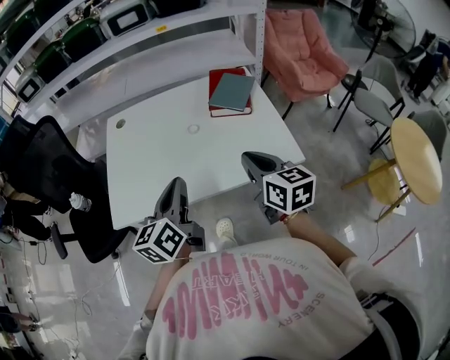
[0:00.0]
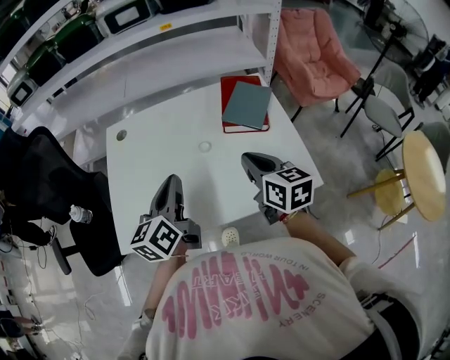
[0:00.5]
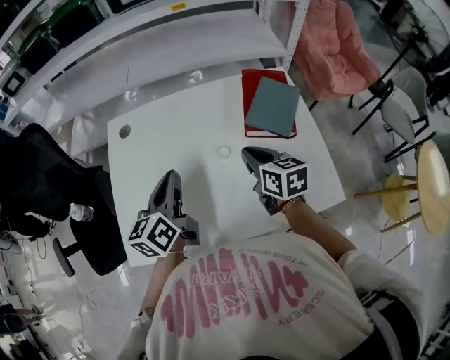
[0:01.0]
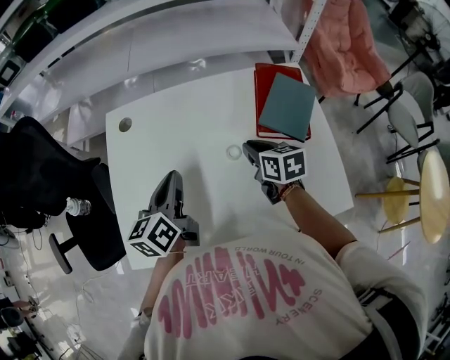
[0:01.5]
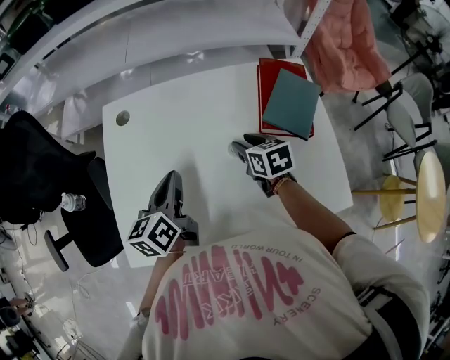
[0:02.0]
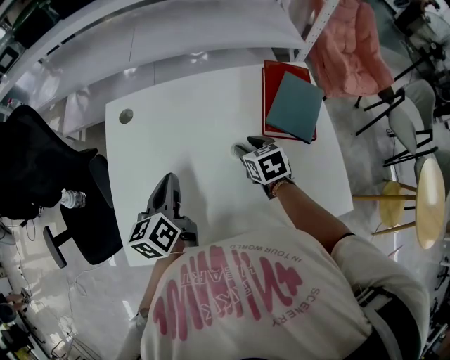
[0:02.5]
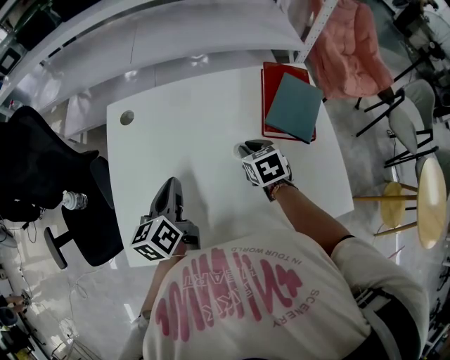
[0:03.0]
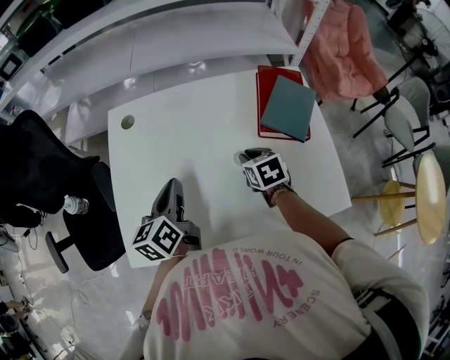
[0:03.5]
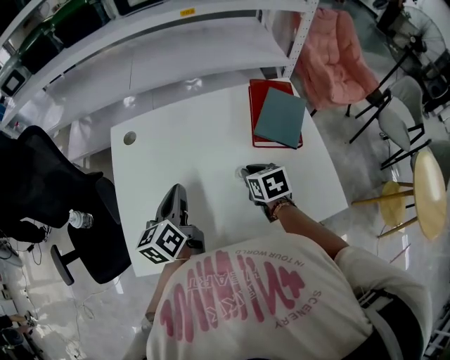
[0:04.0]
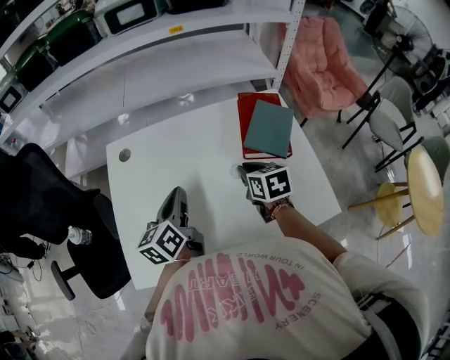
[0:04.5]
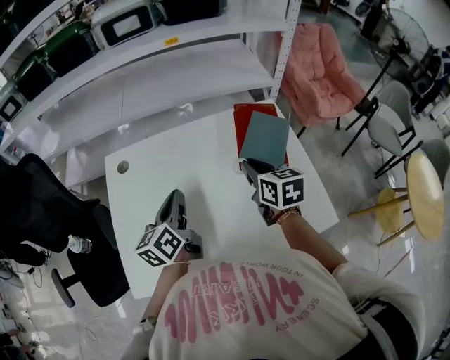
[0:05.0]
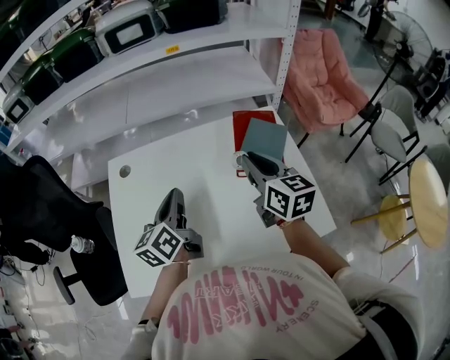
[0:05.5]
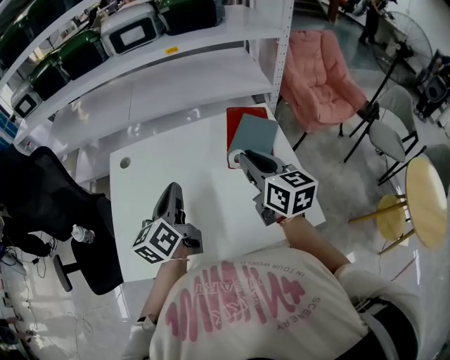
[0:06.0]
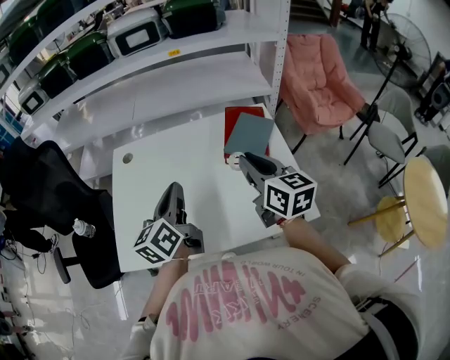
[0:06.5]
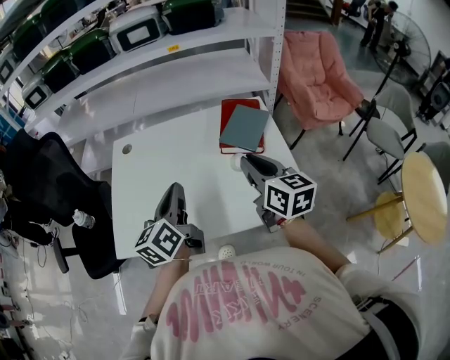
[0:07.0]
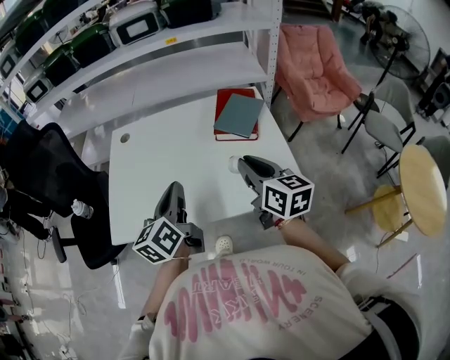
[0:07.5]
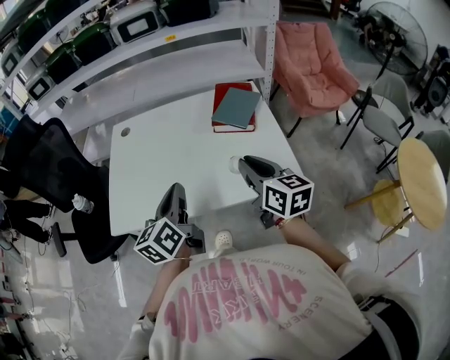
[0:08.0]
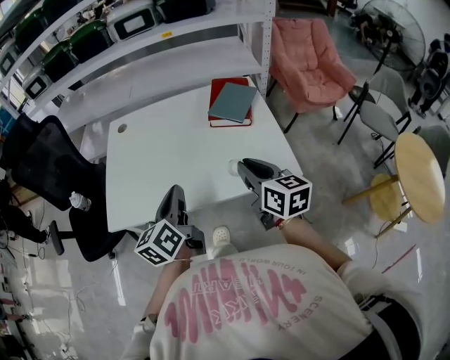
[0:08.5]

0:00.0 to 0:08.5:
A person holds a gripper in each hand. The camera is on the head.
0:00.0 to 0:02.0: The right gripper heads forward and downward, covering roughly 50 cm, rotates about 30 degrees, and opens. The left gripper is displaced forward by about 35 cm.
0:02.0 to 0:04.0: The right gripper goes some 10 cm backward, and closes up.
0:04.0 to 0:06.5: The right gripper is displaced upward and to the right by approximately 25 cm, and tilts its fingers approximately 40 degrees upward. The left gripper goes approximately 20 cm to the right, upward and backward.
0:06.5 to 0:08.5: The grippers both shift backward by some 20 cm.

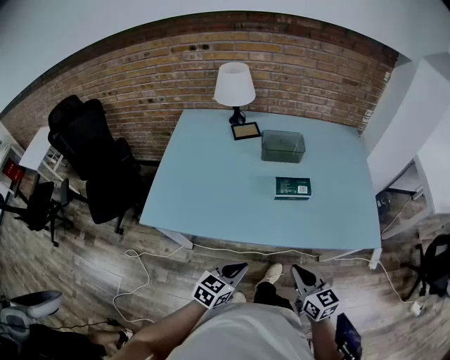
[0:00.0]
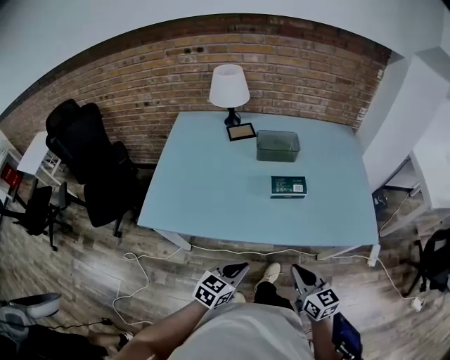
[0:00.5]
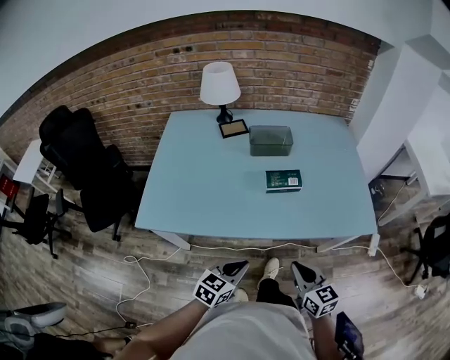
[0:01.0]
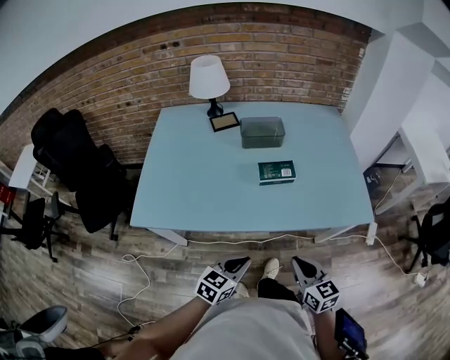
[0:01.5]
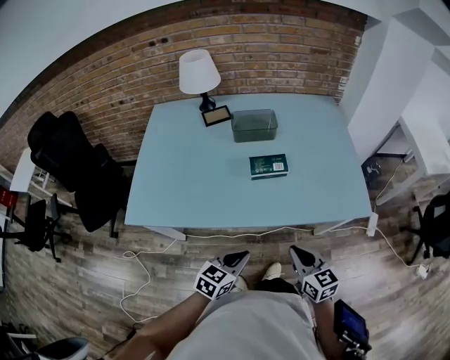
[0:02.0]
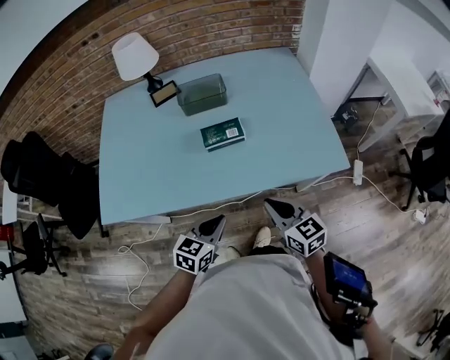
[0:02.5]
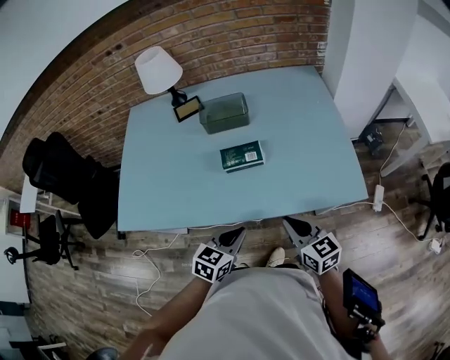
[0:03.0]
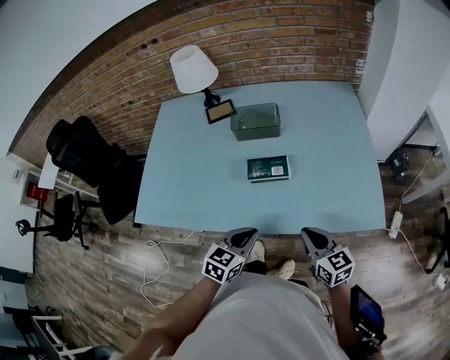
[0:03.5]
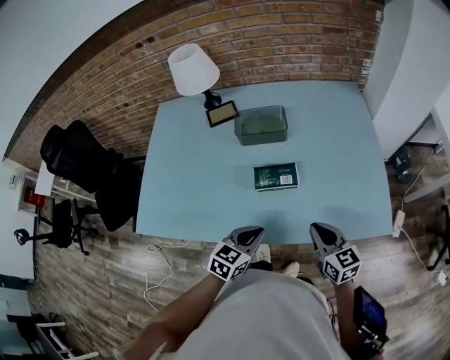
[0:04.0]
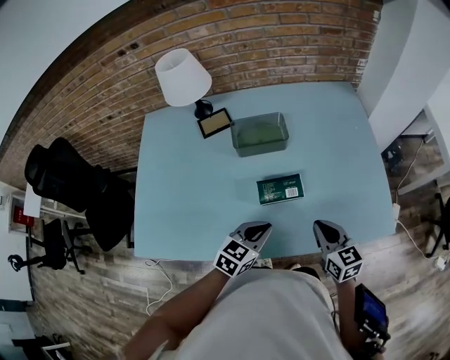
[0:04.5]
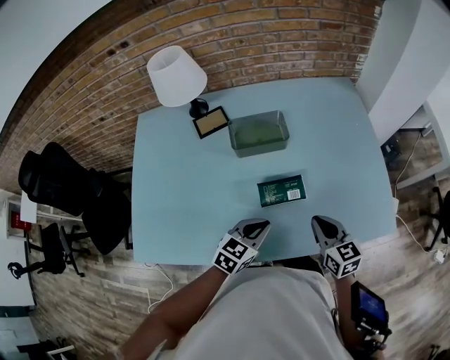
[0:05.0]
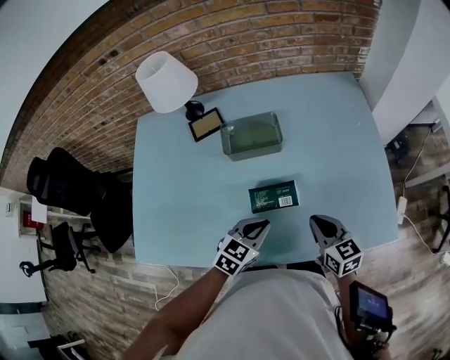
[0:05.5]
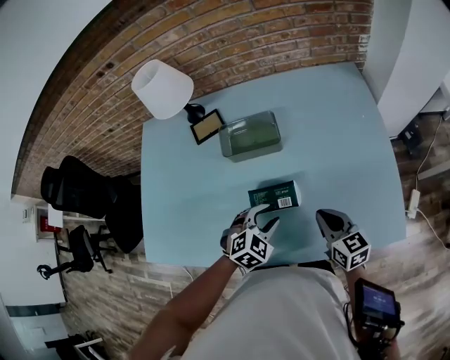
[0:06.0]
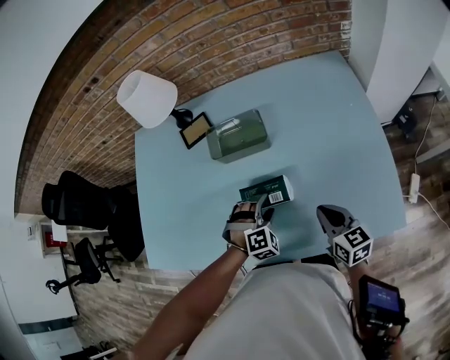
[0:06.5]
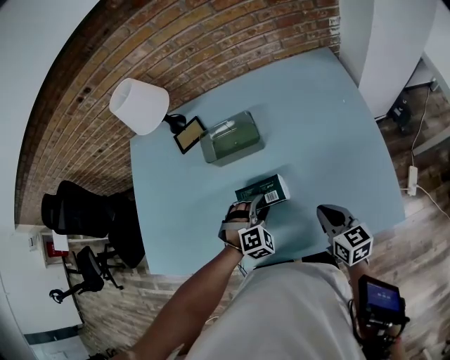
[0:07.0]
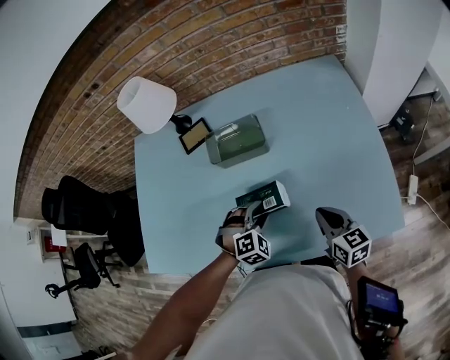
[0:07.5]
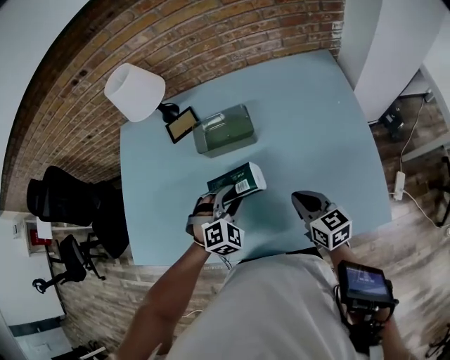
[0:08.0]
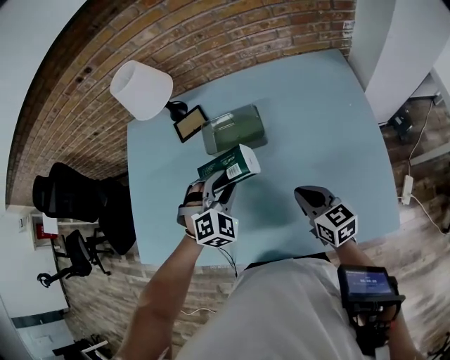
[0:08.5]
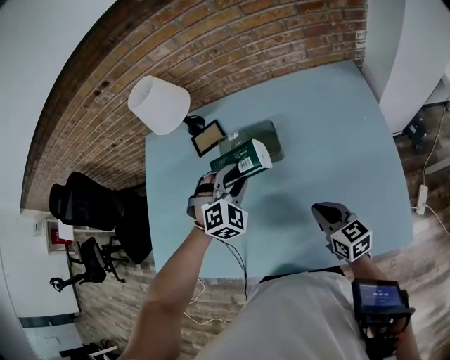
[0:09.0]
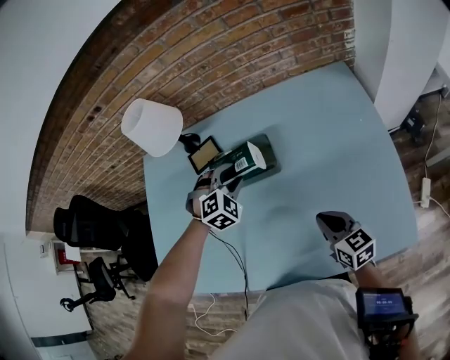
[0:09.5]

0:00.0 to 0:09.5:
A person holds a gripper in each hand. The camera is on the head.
0:00.0 to 0:02.0: The grippers both shift to the right by approximately 5 cm.
0:02.0 to 0:04.0: The two grippers go approximately 15 cm forward.
0:04.0 to 0:05.5: The two grippers go roughly 10 cm forward.
0:05.5 to 0:07.5: The left gripper heads downward, covering some 5 cm, rolls clockwise, seen from behind, by about 50 degrees, and opens; the right gripper is displaced to the right by some 5 cm.
0:07.5 to 0:09.5: The left gripper travels forward by about 20 cm. Meanwhile the right gripper is displaced forward by roughly 5 cm.

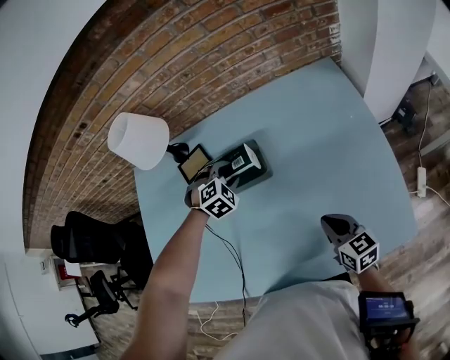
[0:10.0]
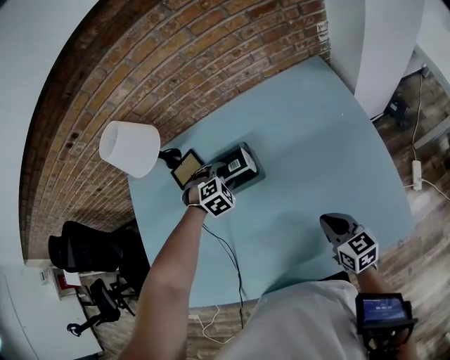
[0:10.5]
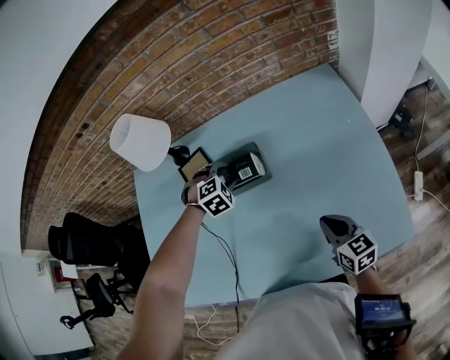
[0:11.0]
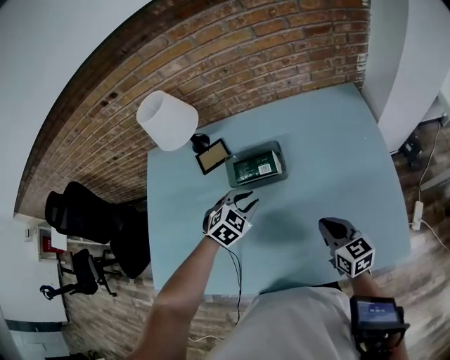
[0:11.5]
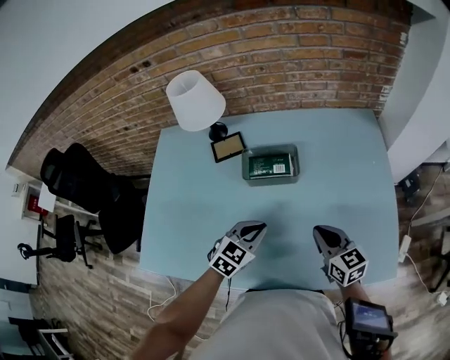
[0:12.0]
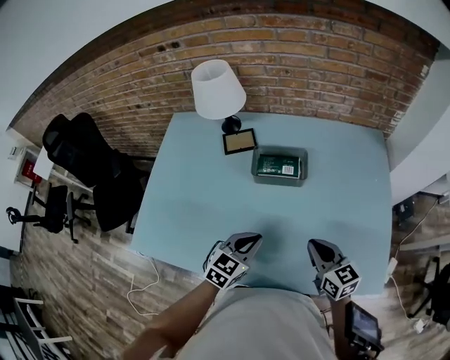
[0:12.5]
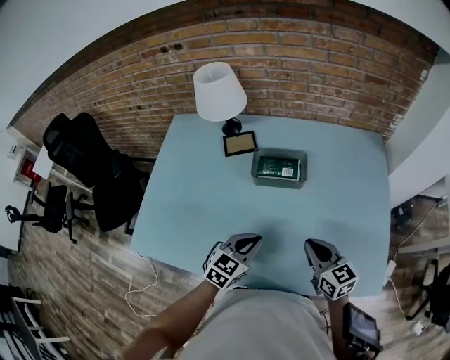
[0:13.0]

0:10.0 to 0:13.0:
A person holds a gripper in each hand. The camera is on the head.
0:10.0 to 0:11.5: The left gripper travels backward by roughly 10 cm, and rotates approximately 20 degrees.
0:11.5 to 0:13.0: The right gripper moves to the left, some 5 cm. Meanwhile the left gripper moves backward, roughly 15 cm, swivels approximately 40 degrees, and closes its fingers.

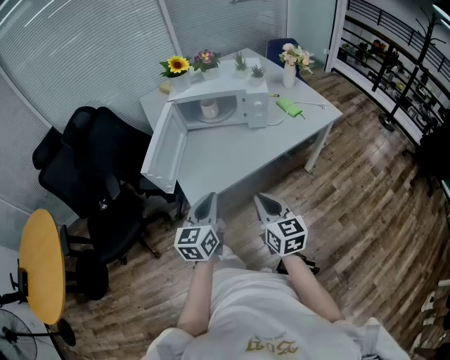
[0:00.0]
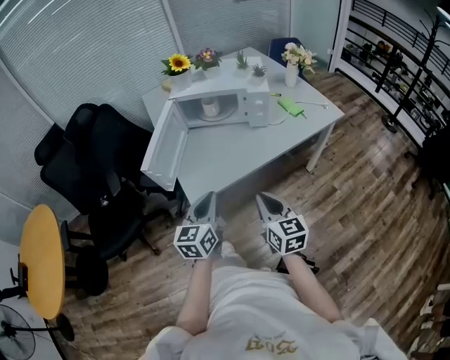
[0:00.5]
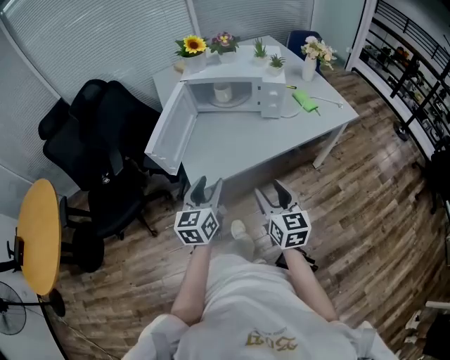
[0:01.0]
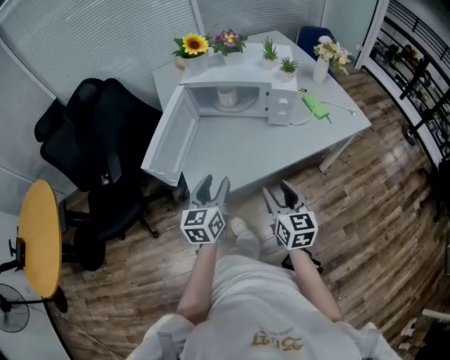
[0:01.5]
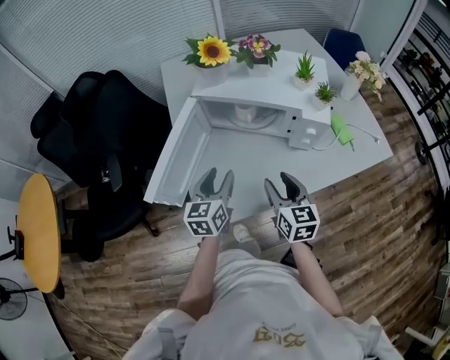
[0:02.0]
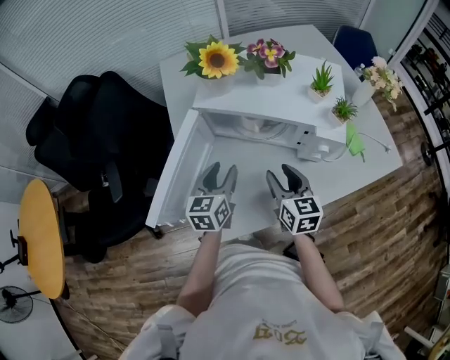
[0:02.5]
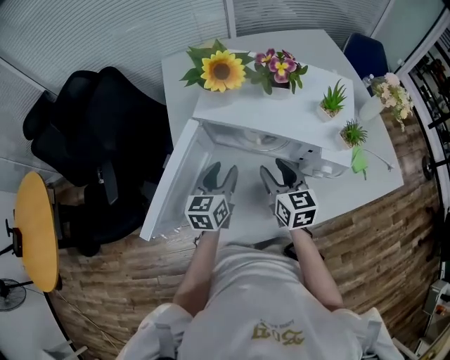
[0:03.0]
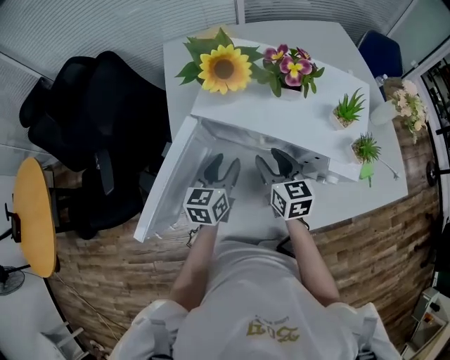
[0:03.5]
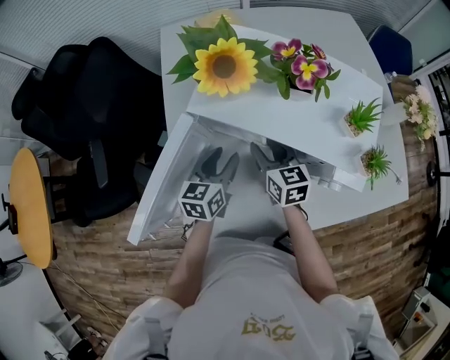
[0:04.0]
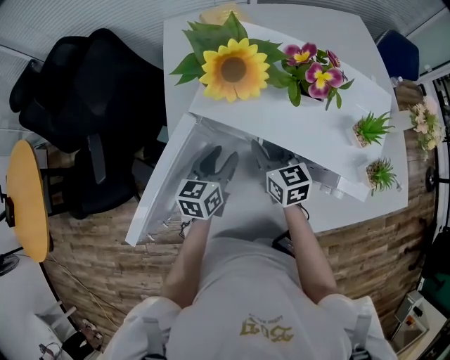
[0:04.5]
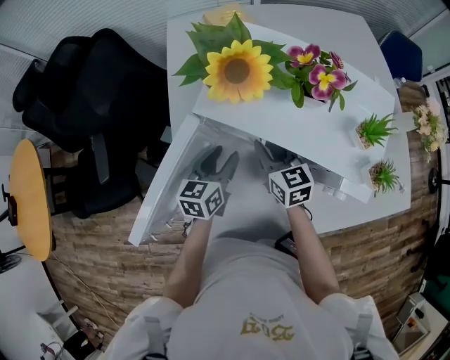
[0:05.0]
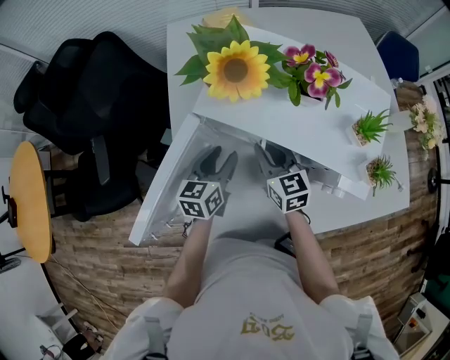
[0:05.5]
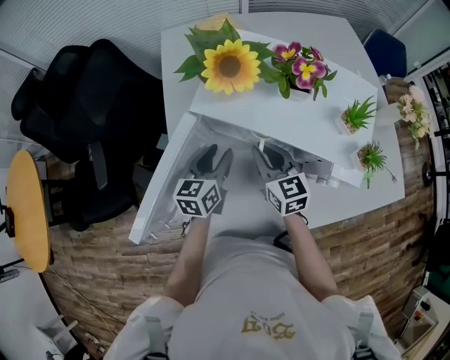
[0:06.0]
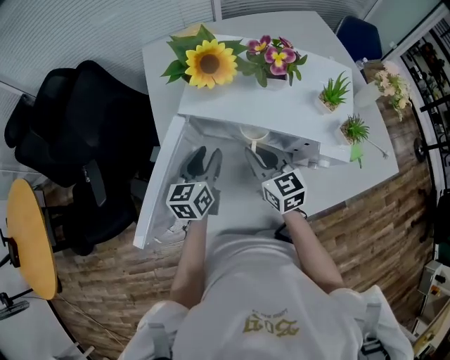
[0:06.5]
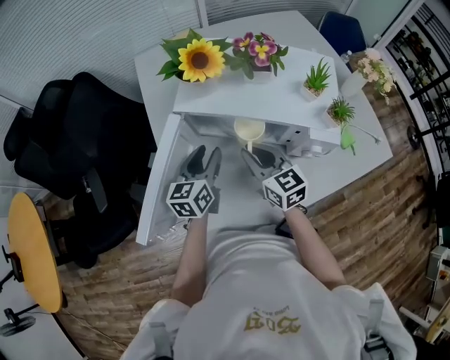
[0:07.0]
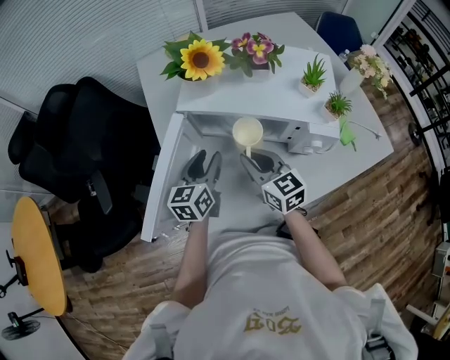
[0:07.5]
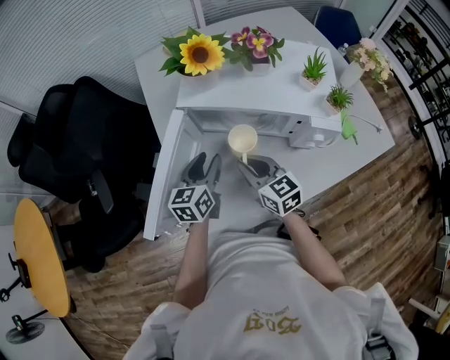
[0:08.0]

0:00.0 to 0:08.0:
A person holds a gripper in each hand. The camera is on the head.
0:00.0 to 0:02.0: The two grippers go about 25 cm forward. The right gripper opens. Meanwhile the left gripper opens up.
0:02.0 to 0:04.0: The right gripper is displaced forward by some 25 cm; the left gripper shifts approximately 20 cm forward and downward.
0:04.0 to 0:06.0: The right gripper closes up.
0:06.0 to 0:08.0: The left gripper is displaced backward by approximately 5 cm. The right gripper moves backward, some 10 cm.
